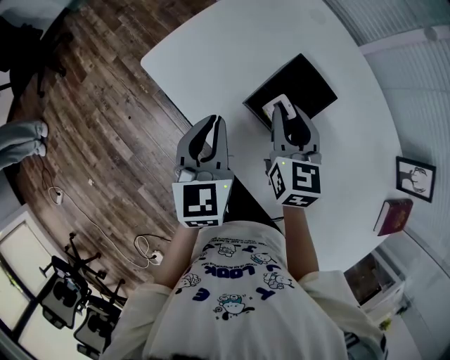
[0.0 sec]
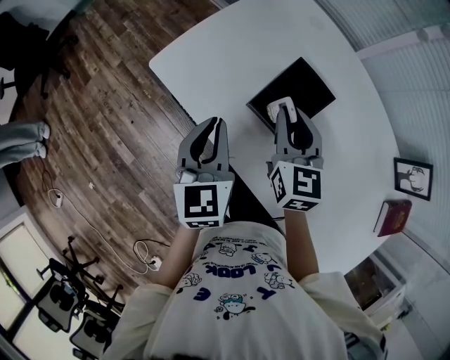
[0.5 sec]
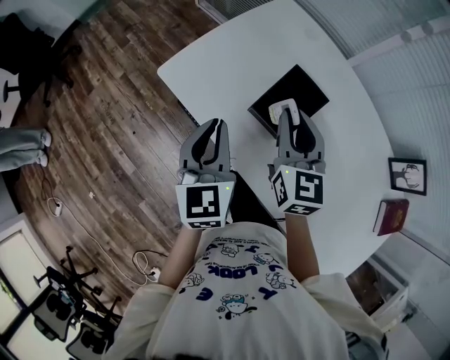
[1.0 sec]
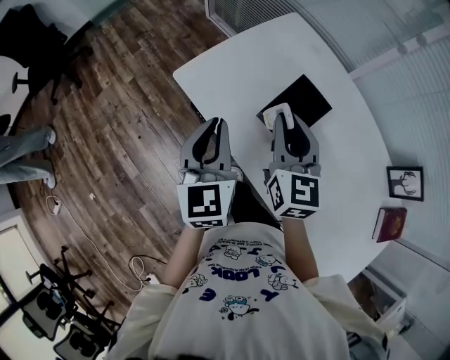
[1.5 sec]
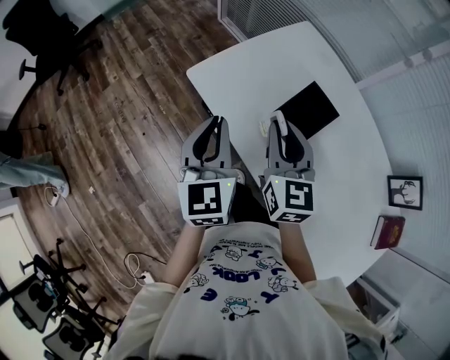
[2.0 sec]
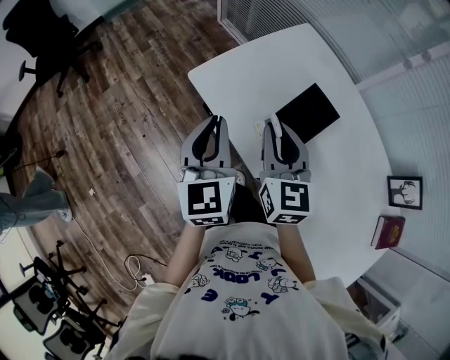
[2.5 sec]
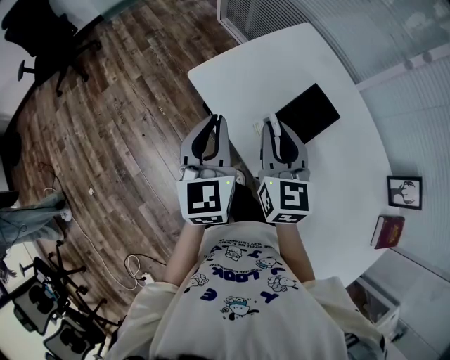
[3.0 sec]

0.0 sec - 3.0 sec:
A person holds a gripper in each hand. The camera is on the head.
0.0 sec - 1.5 sec: Both grippers travel together upward and to the left, roughly 10 cm.
1.5 sec - 3.0 sec: The right gripper goes approximately 5 cm to the left, while the left gripper moves approximately 5 cm.

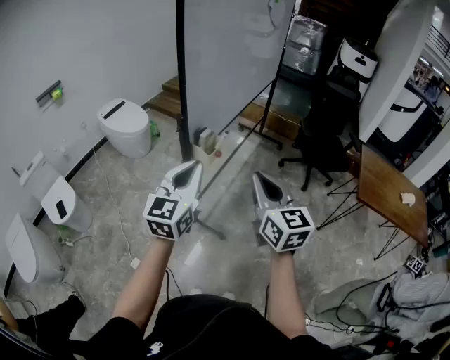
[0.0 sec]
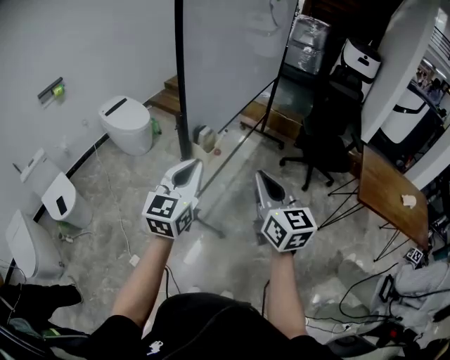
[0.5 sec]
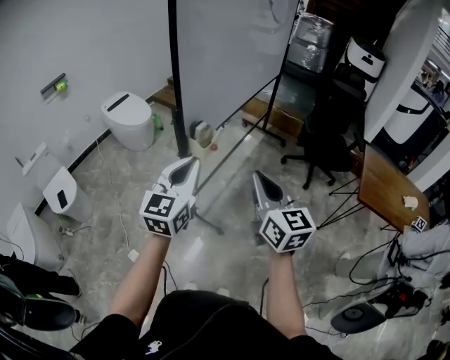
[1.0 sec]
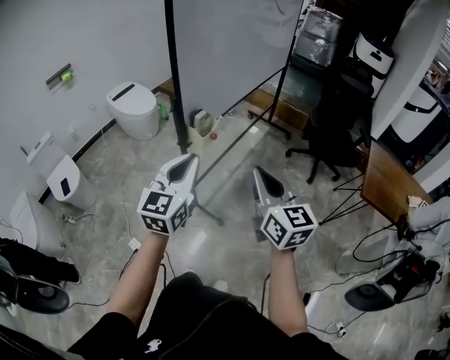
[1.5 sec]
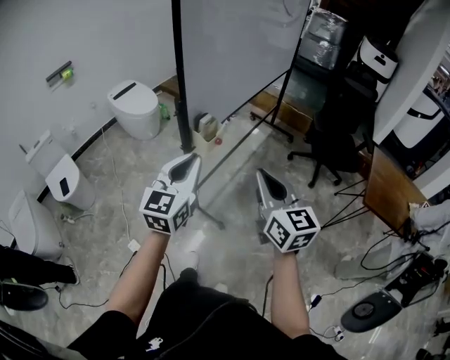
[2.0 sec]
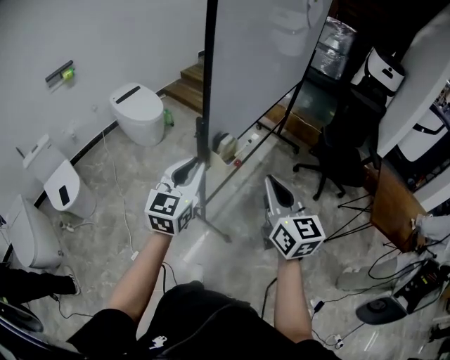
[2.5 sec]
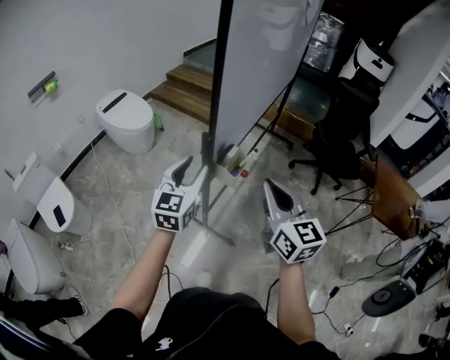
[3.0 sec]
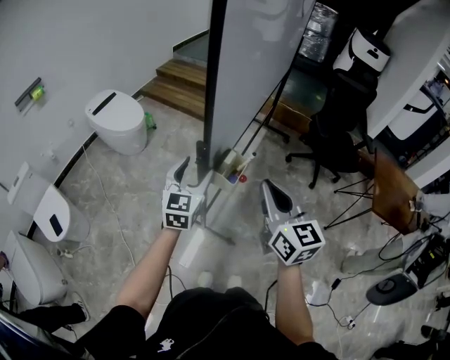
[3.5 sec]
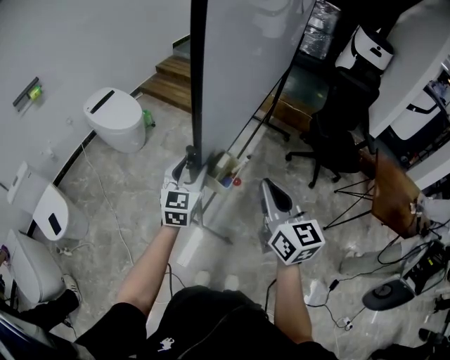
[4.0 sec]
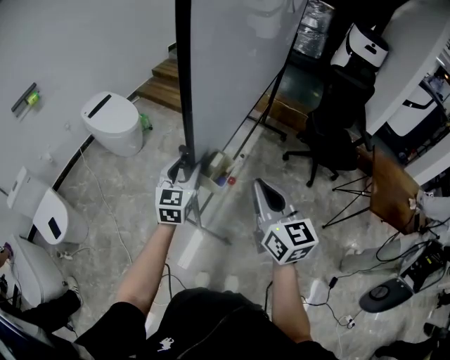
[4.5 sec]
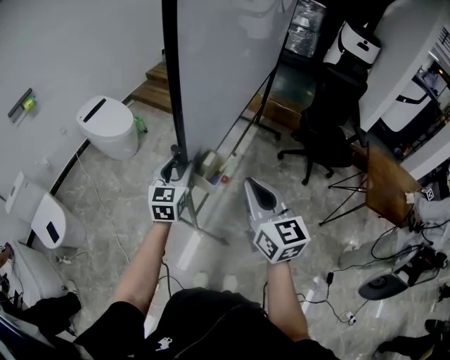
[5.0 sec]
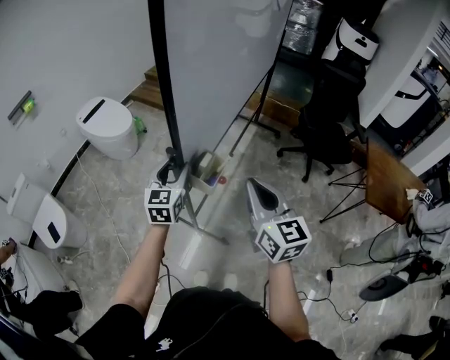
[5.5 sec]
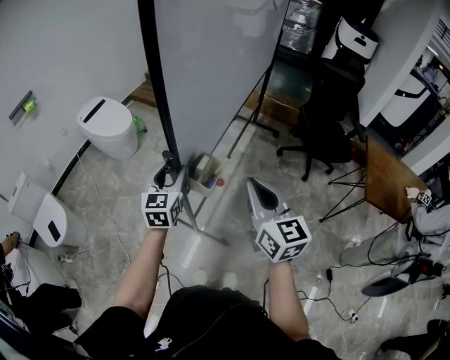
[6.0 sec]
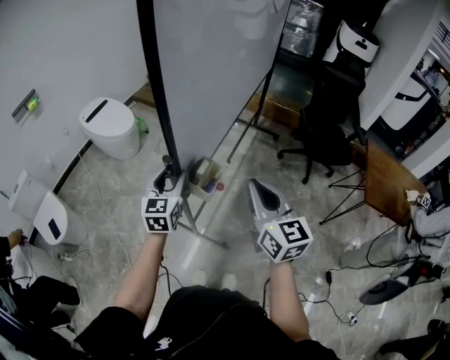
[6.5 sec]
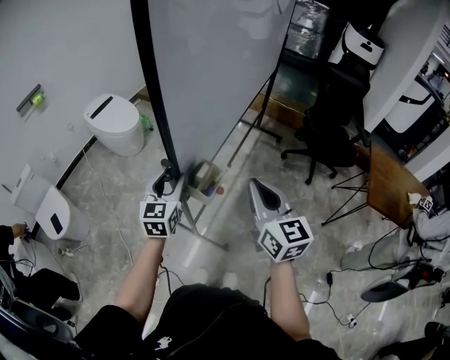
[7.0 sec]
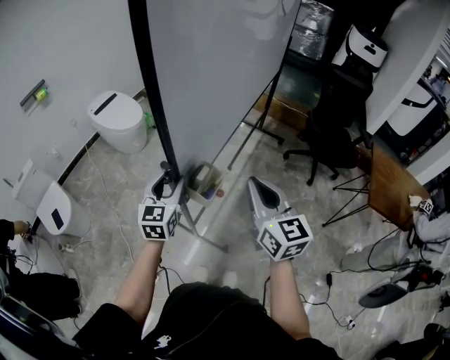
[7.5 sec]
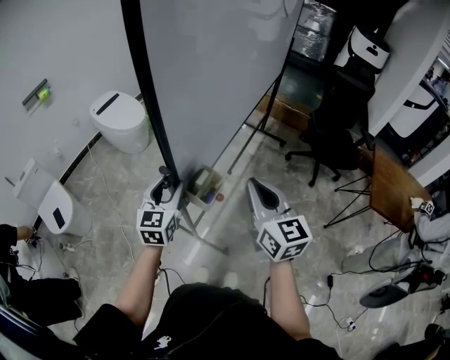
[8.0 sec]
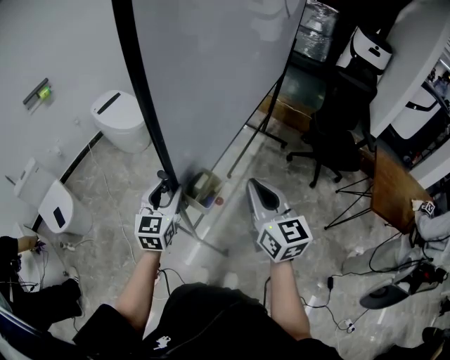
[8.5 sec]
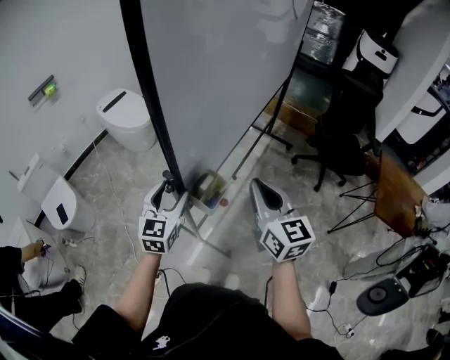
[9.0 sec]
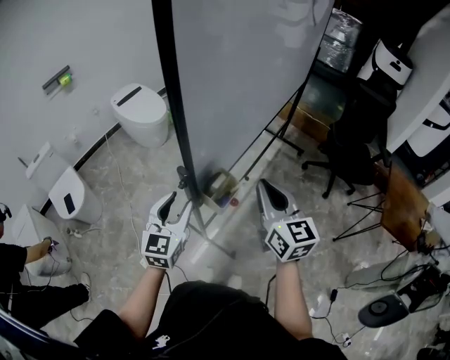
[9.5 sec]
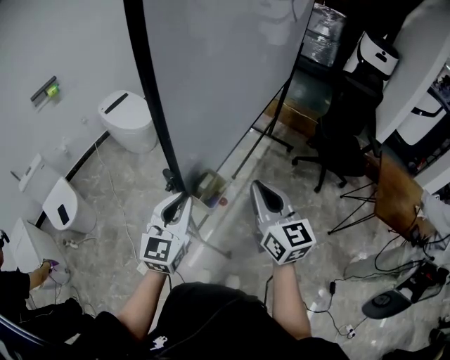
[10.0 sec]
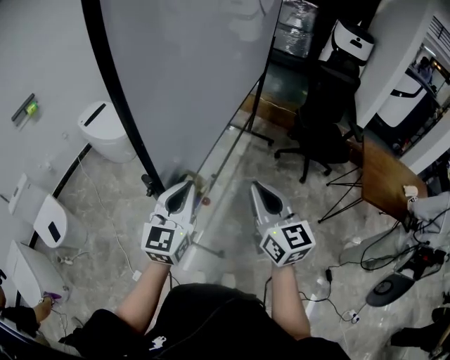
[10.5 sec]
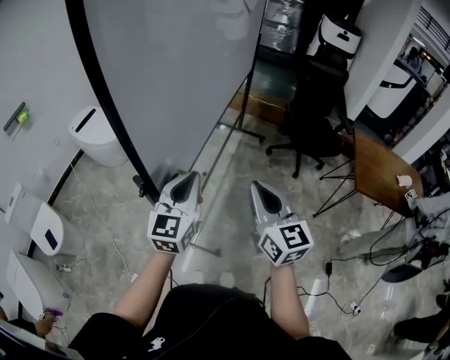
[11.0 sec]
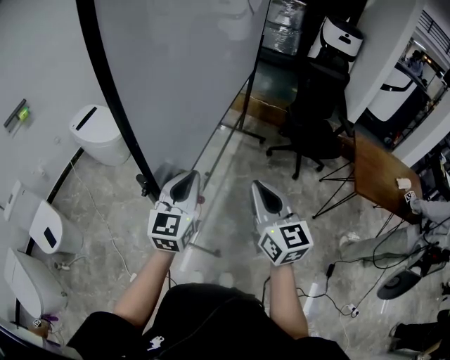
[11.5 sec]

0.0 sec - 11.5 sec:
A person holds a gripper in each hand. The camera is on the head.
0.0 sec - 2.0 sec: The grippers make only small movements.
2.0 sec - 4.0 sec: The left gripper goes about 30 cm forward and downward, and opens its fingers. The right gripper moves forward and to the left, some 20 cm.
4.0 sec - 6.0 sec: The right gripper ends up about 5 cm from where it was.
6.0 sec - 7.5 sec: The left gripper travels backward by about 5 cm.
7.5 sec - 9.5 sec: The left gripper moves backward, roughly 5 cm.
9.5 sec - 11.5 sec: The left gripper is displaced to the right and upward by some 15 cm, and closes up; the right gripper heads to the right, covering some 10 cm.

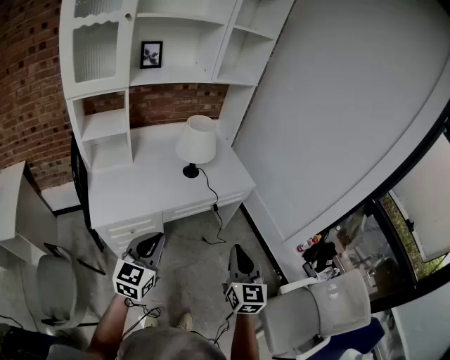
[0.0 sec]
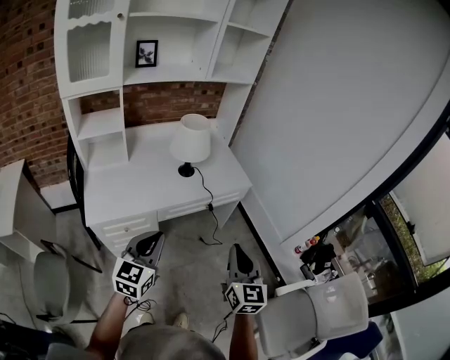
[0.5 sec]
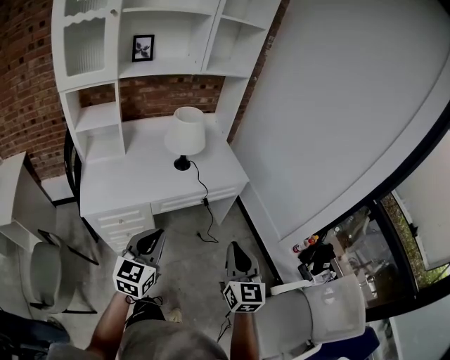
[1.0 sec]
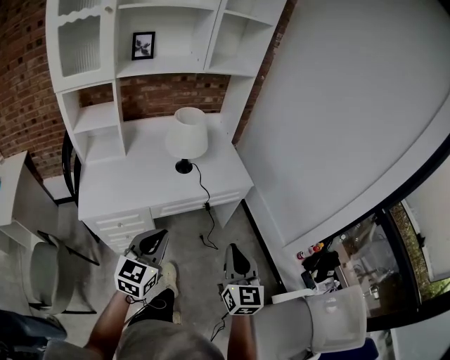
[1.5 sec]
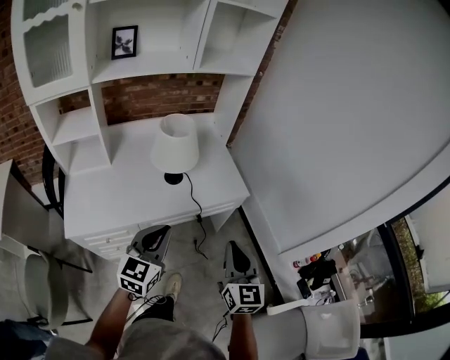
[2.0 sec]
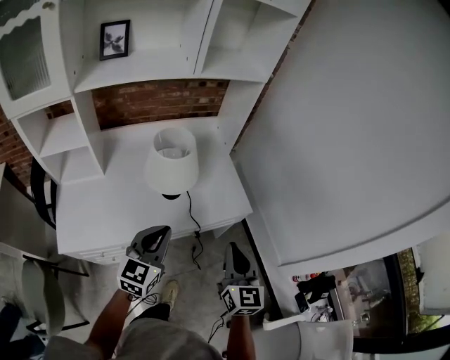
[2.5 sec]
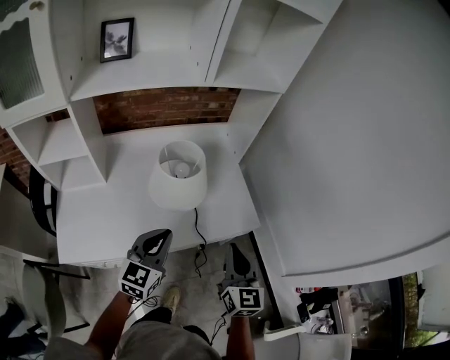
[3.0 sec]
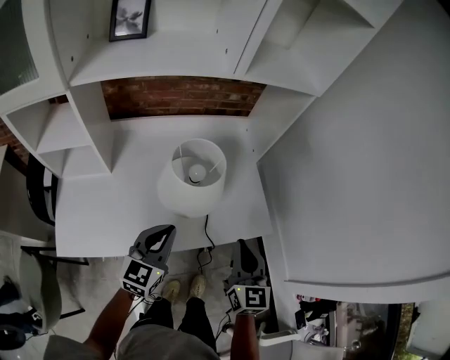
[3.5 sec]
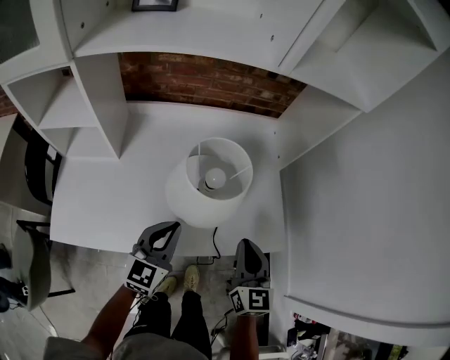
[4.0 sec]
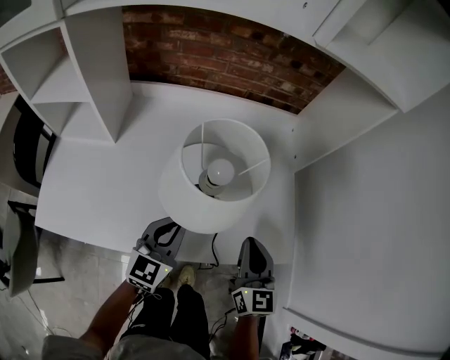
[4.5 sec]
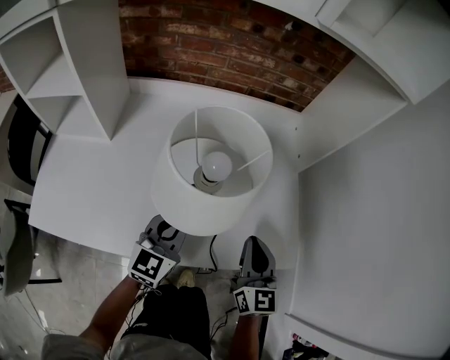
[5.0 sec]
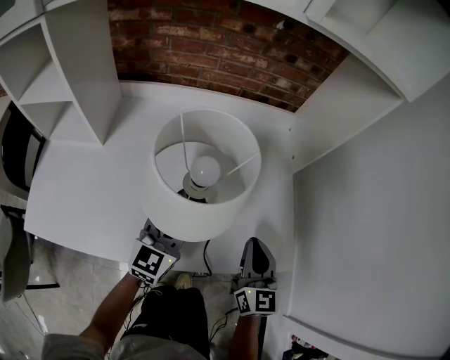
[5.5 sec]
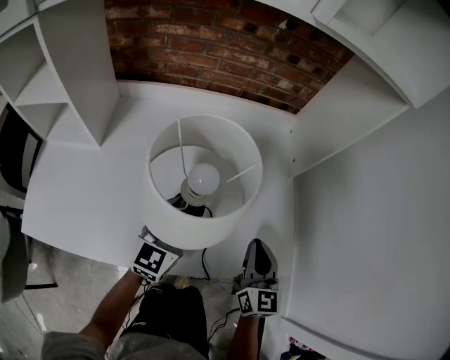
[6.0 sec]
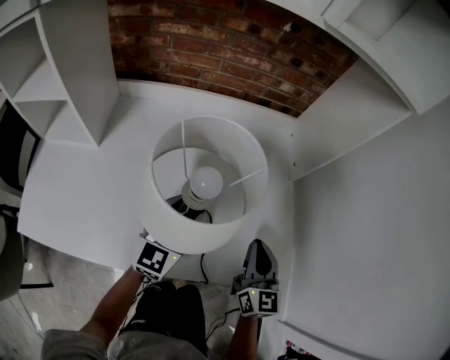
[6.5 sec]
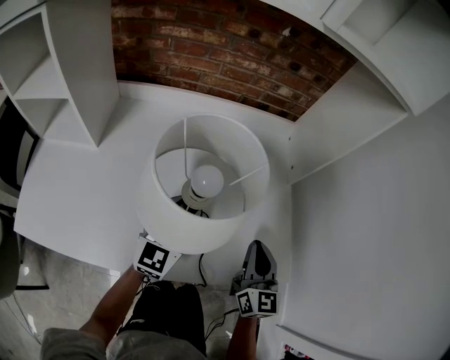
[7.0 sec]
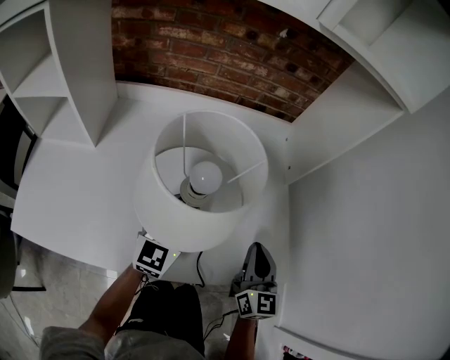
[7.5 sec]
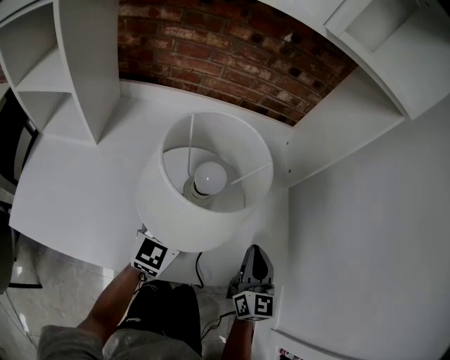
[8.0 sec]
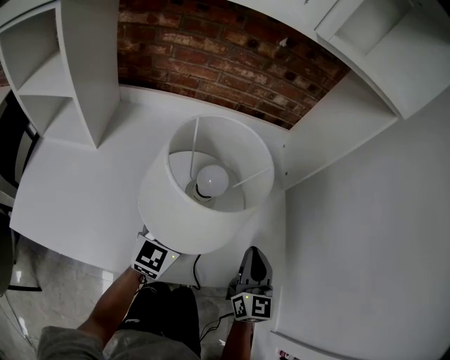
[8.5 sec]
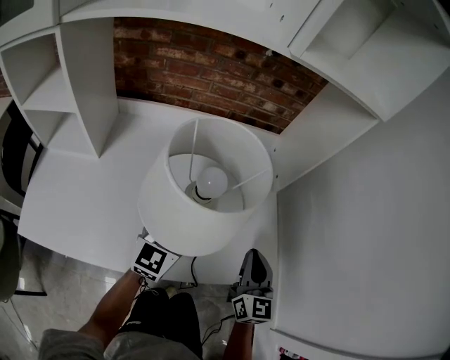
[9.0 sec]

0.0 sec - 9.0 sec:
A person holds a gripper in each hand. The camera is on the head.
0.0 sec - 2.0 sec: The two grippers go some 20 cm forward and to the right.
2.0 sec - 4.5 sec: Both grippers travel together forward and downward, some 40 cm.
4.5 sec - 7.0 sec: The left gripper moves forward, roughly 10 cm, and opens its fingers. The right gripper goes some 10 cm downward, forward and to the right.
7.0 sec - 9.0 sec: The left gripper travels upward by approximately 5 cm.

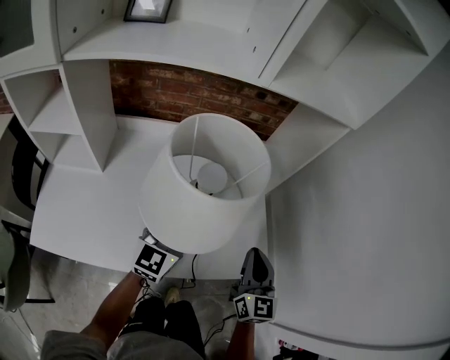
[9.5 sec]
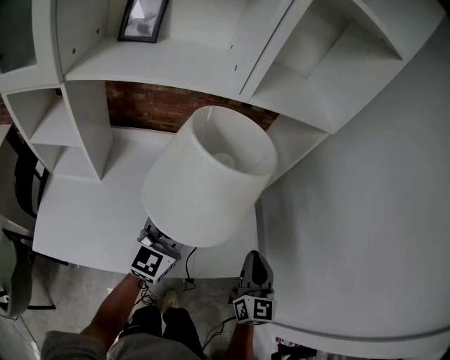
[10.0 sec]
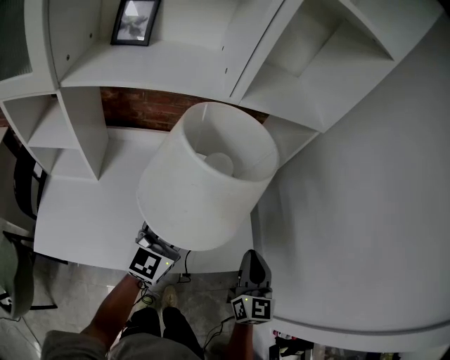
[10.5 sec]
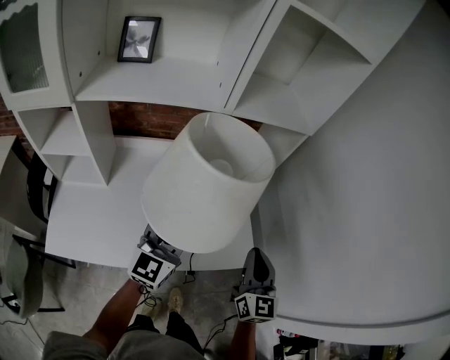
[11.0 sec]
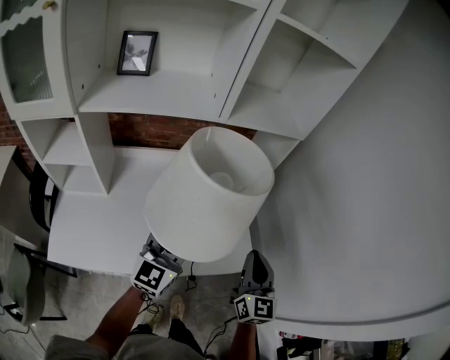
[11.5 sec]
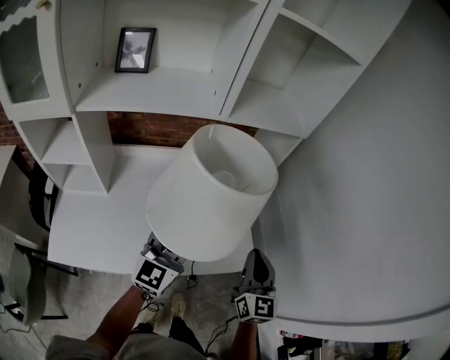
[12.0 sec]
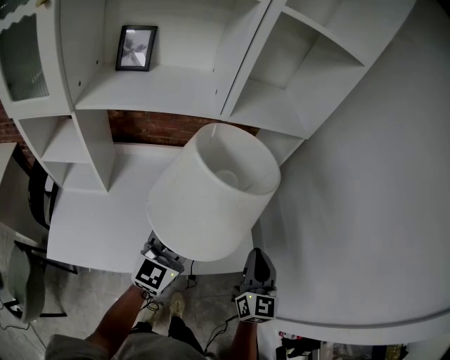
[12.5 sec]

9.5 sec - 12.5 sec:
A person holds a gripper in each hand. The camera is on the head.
9.5 sec - 11.0 sec: The left gripper shifts roughly 15 cm upward and backward, while the right gripper moves upward, roughly 15 cm.
11.0 sec - 12.5 sec: The grippers move only a little.
